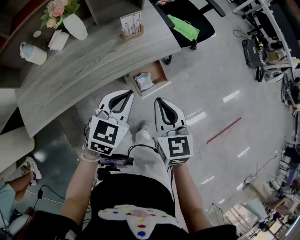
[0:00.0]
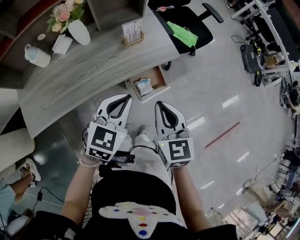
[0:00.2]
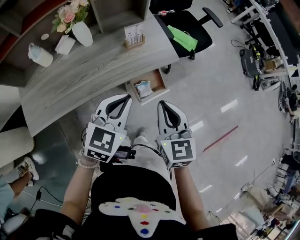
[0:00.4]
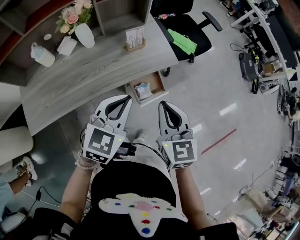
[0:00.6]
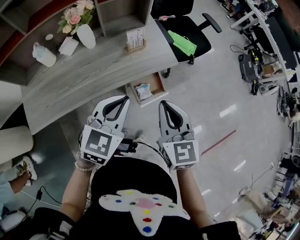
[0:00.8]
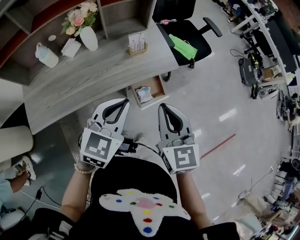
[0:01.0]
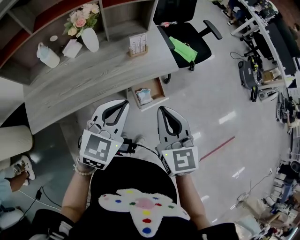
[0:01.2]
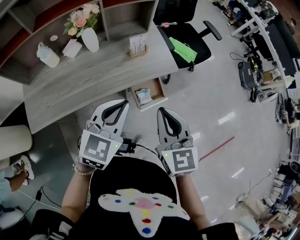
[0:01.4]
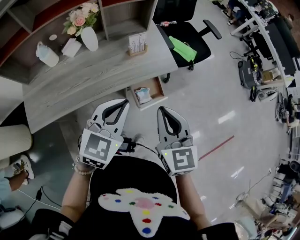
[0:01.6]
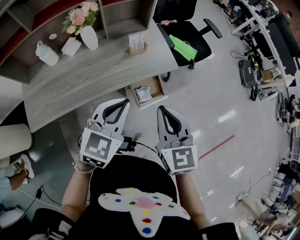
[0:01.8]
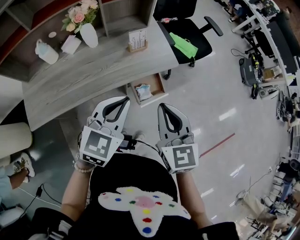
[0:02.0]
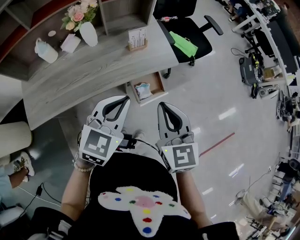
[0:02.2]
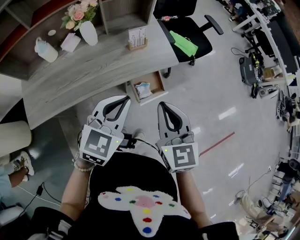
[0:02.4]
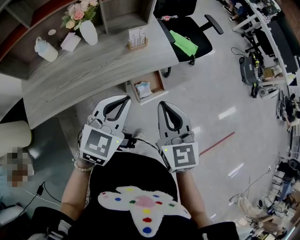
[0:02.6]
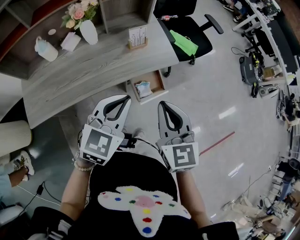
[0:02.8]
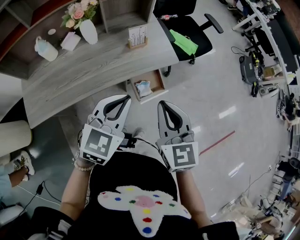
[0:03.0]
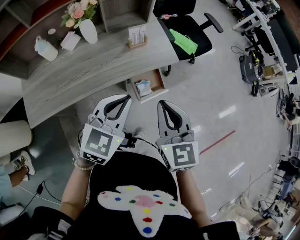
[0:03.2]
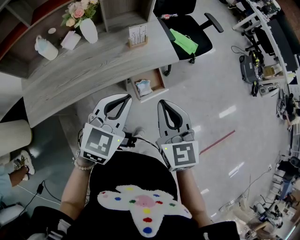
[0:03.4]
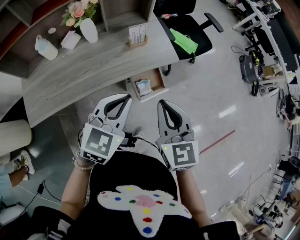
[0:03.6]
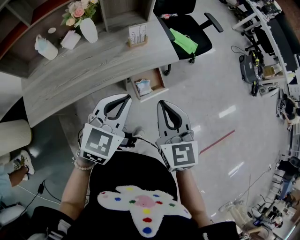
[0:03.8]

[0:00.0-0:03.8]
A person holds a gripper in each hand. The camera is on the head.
0:00.0 to 0:01.2: The two grippers go approximately 10 cm upward.
0:01.2 to 0:02.6: Both grippers stay about where they are.
0:02.6 to 0:03.8: Both grippers stay about where they are.

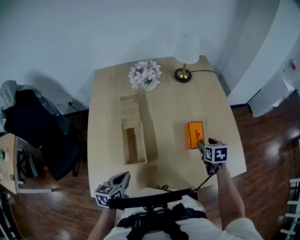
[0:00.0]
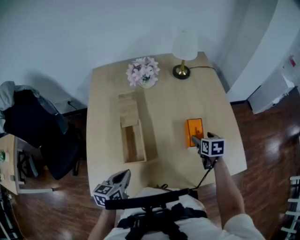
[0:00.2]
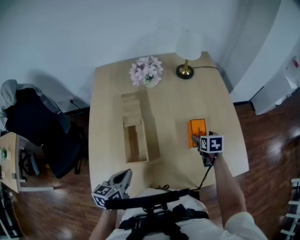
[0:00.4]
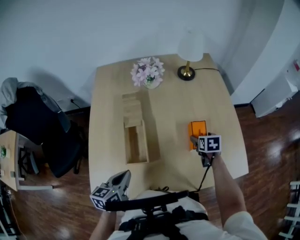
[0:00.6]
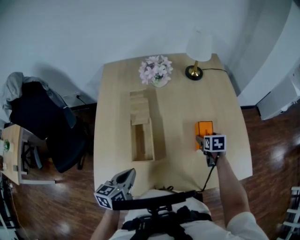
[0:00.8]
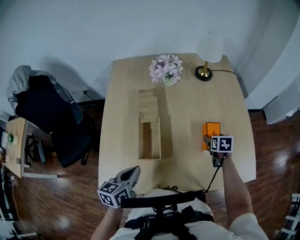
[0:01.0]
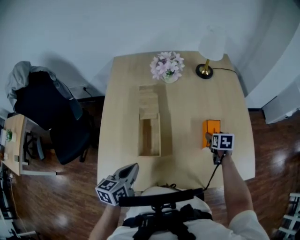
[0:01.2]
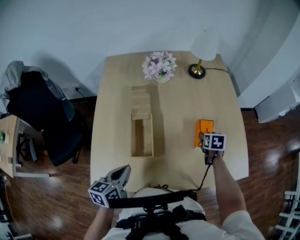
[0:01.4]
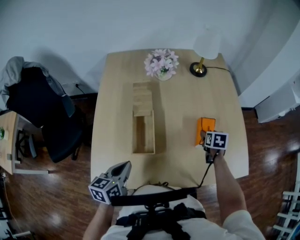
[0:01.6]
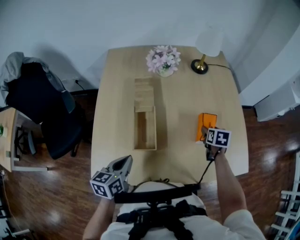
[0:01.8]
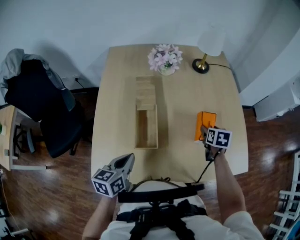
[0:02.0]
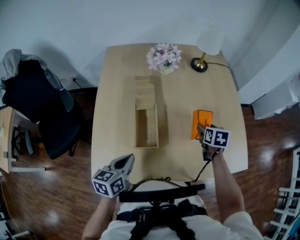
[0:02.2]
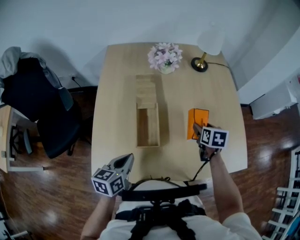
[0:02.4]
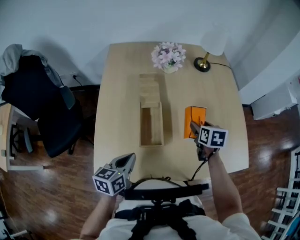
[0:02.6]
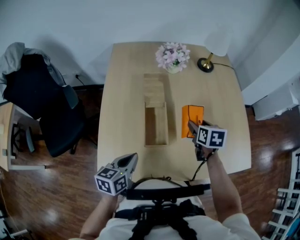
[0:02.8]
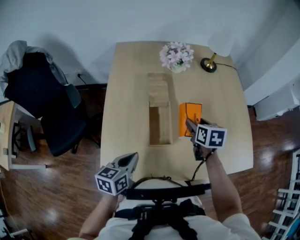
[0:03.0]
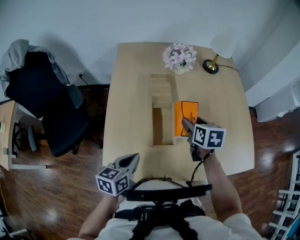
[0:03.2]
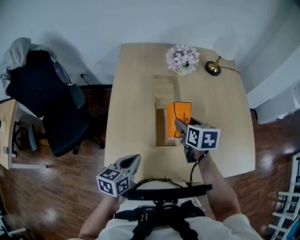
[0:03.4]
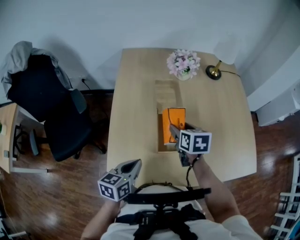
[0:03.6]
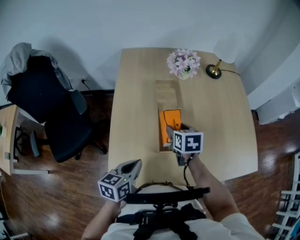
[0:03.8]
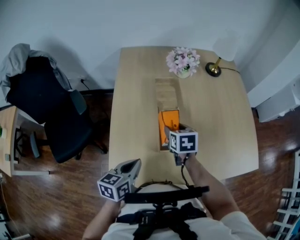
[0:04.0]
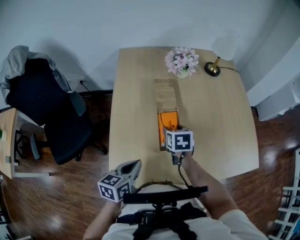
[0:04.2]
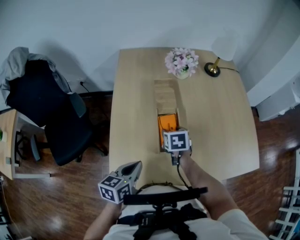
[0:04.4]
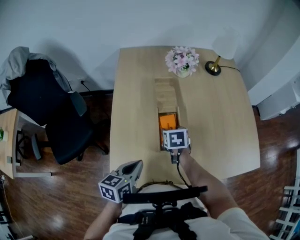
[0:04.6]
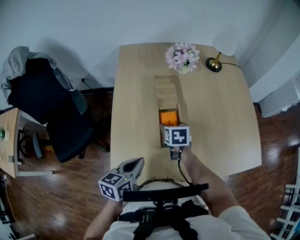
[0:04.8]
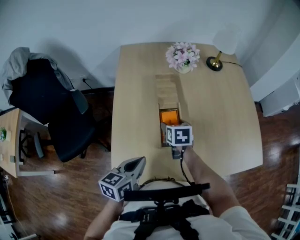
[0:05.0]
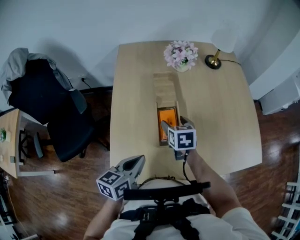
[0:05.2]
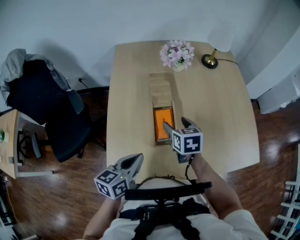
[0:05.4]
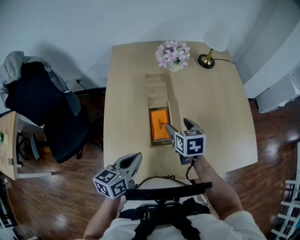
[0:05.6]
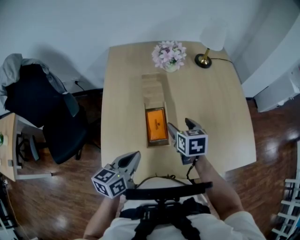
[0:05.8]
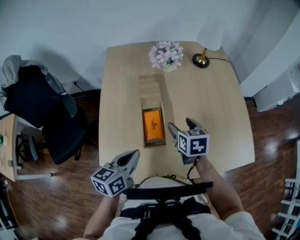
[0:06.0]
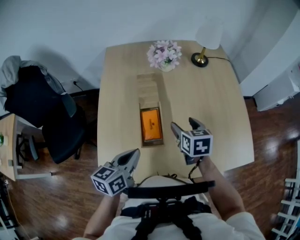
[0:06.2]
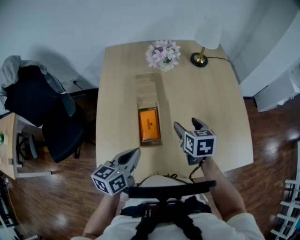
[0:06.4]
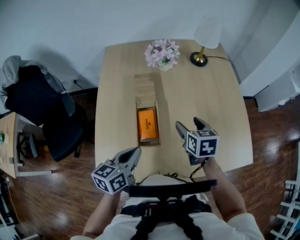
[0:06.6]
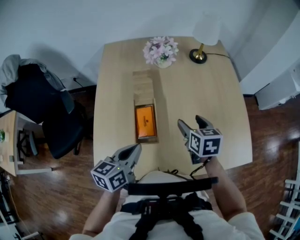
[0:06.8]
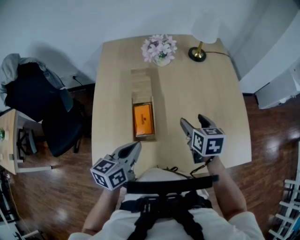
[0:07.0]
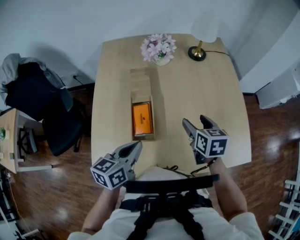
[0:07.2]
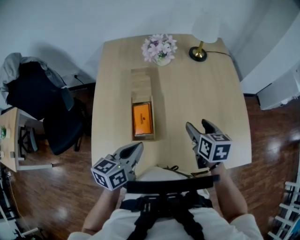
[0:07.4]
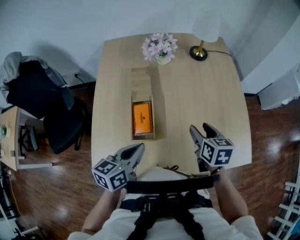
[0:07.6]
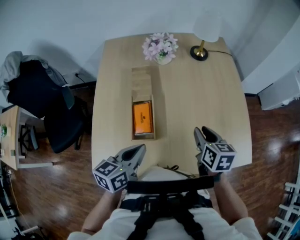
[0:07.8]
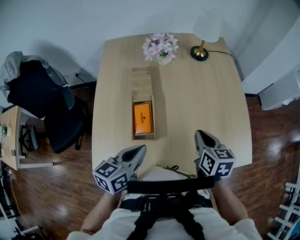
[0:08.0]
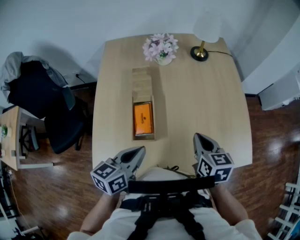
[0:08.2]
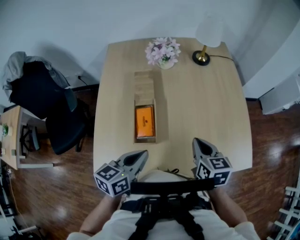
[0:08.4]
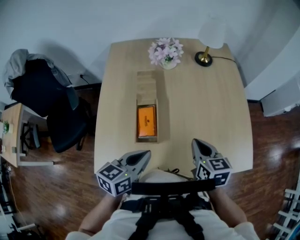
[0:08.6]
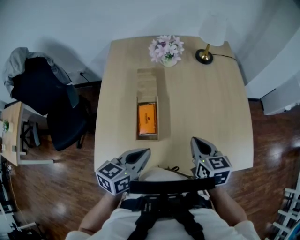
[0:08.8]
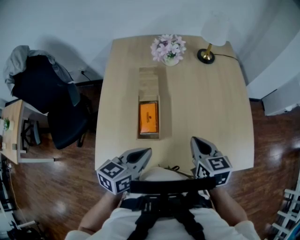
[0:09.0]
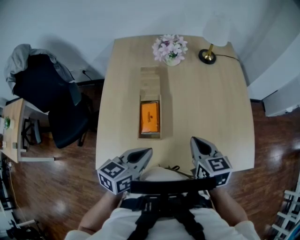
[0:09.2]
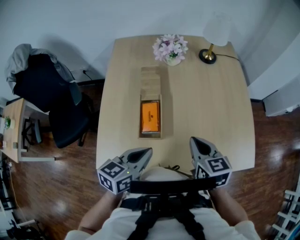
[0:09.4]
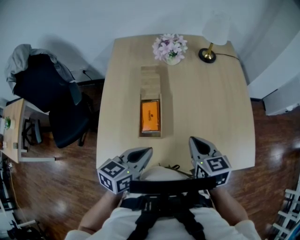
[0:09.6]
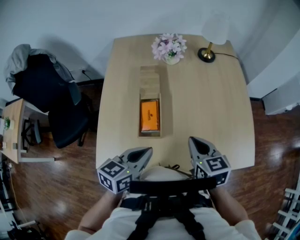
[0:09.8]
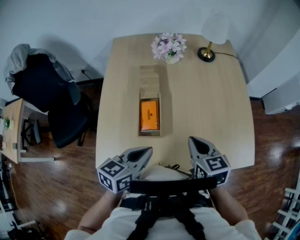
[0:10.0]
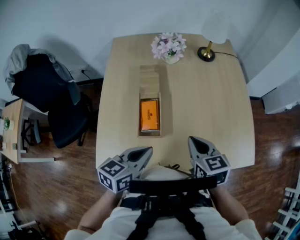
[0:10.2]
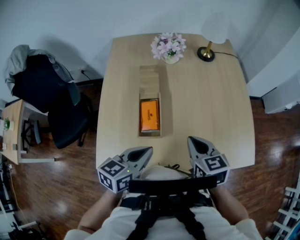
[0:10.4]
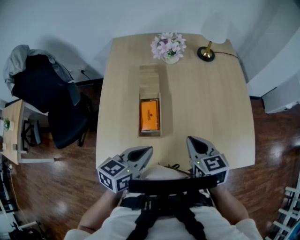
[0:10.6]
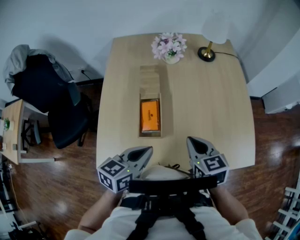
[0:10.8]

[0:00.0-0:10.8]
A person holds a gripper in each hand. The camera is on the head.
0:00.0 to 0:01.6: The right gripper goes roughly 5 cm forward.
0:01.6 to 0:03.0: The left gripper changes place by about 5 cm. The right gripper heads to the left and upward, covering about 20 cm.
0:03.0 to 0:04.6: The right gripper moves to the left and downward, about 15 cm.
0:04.6 to 0:06.2: The right gripper travels to the right and upward by some 15 cm. Meanwhile the left gripper moves to the right, roughly 5 cm.
0:06.2 to 0:07.8: The right gripper heads to the right, covering about 10 cm, and closes, while the left gripper is displaced to the right by some 10 cm.
0:07.8 to 0:09.2: The right gripper heads to the left, covering roughly 5 cm.
0:09.2 to 0:10.8: The grippers make only small movements.

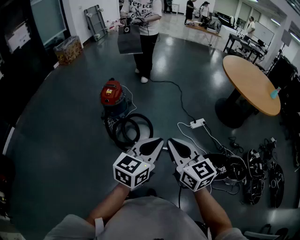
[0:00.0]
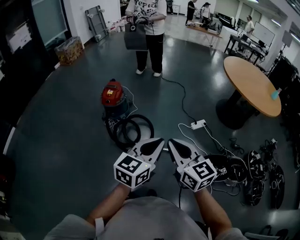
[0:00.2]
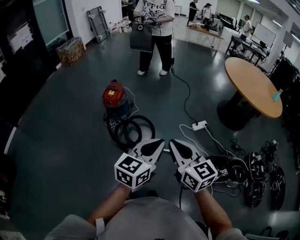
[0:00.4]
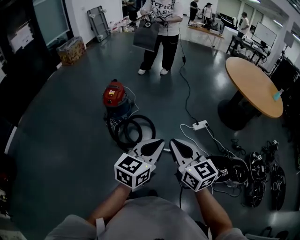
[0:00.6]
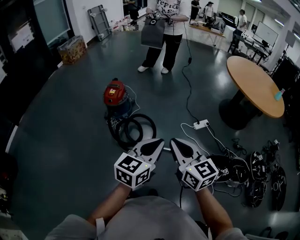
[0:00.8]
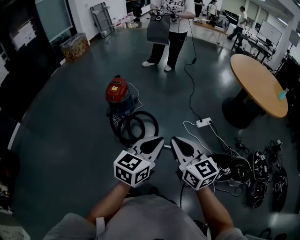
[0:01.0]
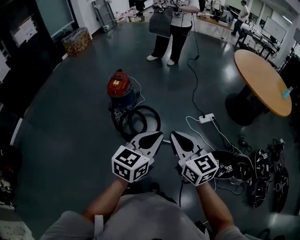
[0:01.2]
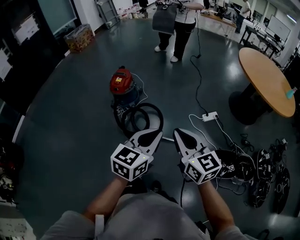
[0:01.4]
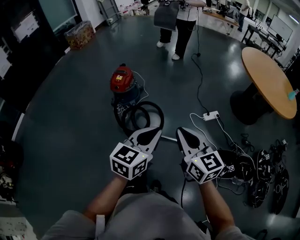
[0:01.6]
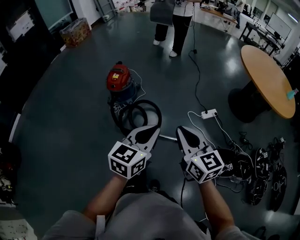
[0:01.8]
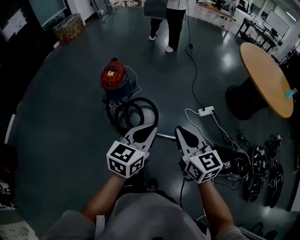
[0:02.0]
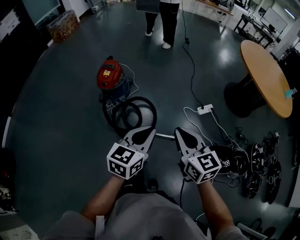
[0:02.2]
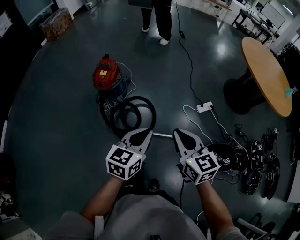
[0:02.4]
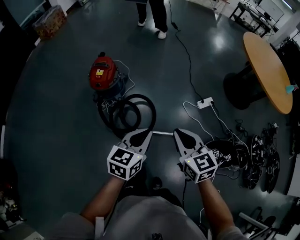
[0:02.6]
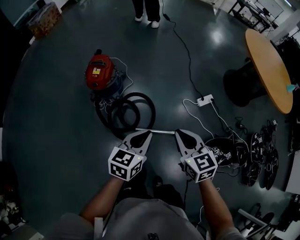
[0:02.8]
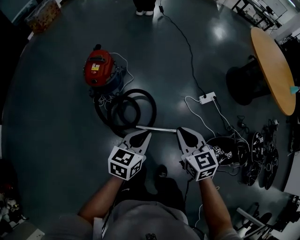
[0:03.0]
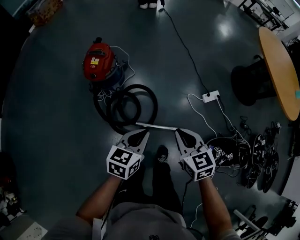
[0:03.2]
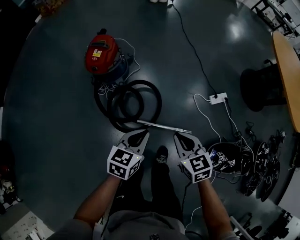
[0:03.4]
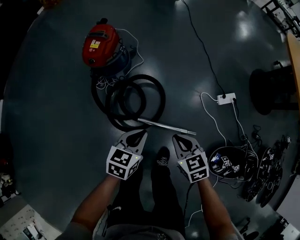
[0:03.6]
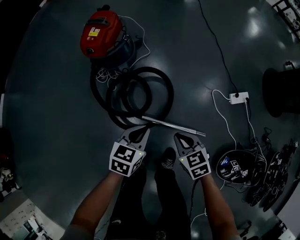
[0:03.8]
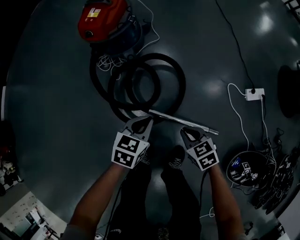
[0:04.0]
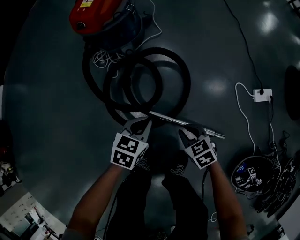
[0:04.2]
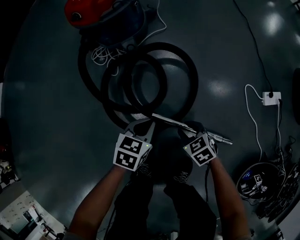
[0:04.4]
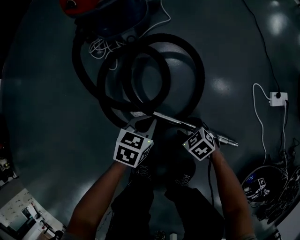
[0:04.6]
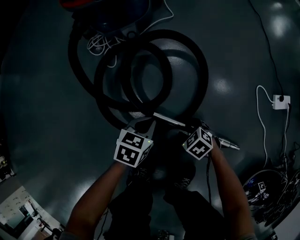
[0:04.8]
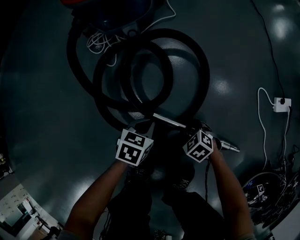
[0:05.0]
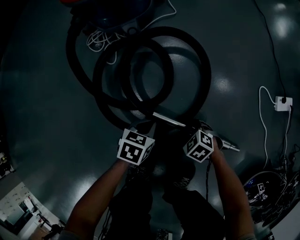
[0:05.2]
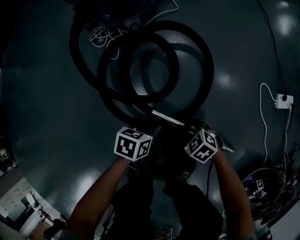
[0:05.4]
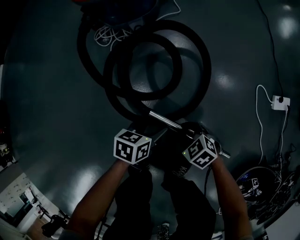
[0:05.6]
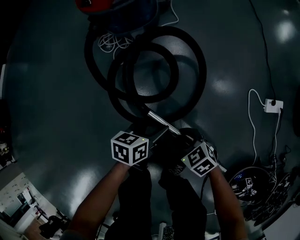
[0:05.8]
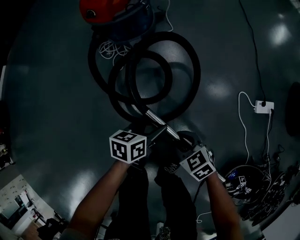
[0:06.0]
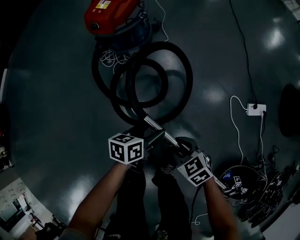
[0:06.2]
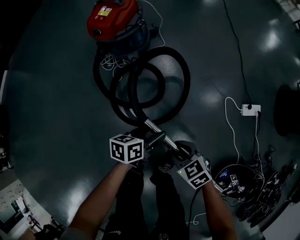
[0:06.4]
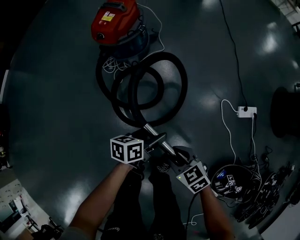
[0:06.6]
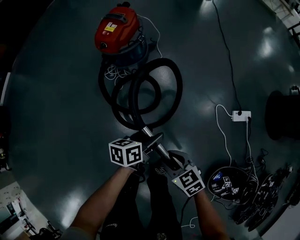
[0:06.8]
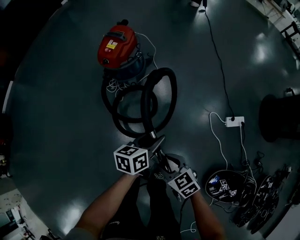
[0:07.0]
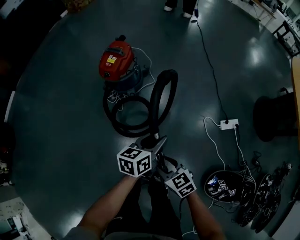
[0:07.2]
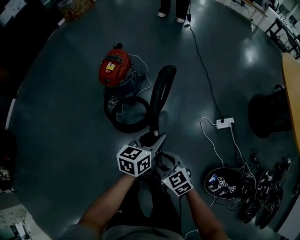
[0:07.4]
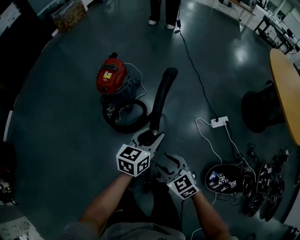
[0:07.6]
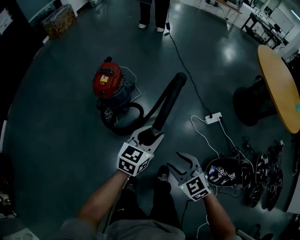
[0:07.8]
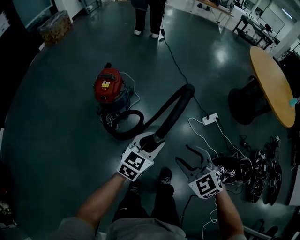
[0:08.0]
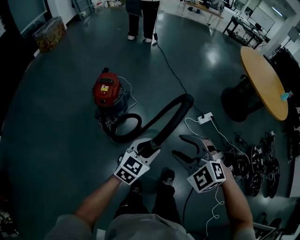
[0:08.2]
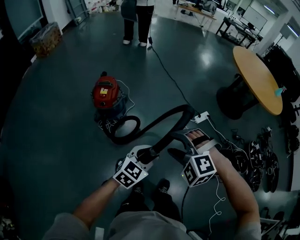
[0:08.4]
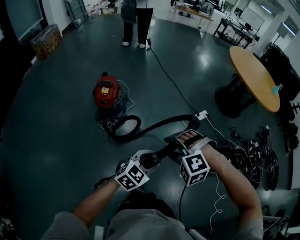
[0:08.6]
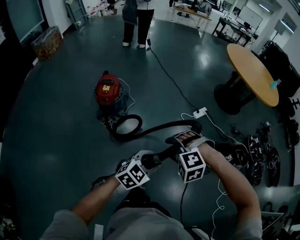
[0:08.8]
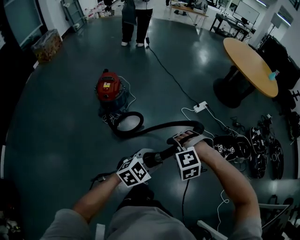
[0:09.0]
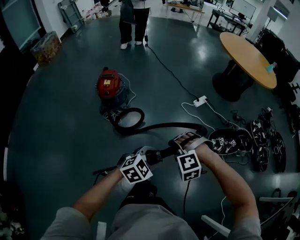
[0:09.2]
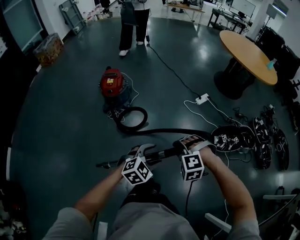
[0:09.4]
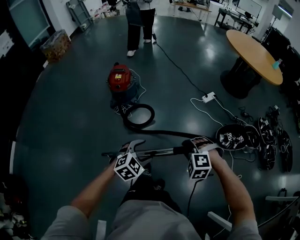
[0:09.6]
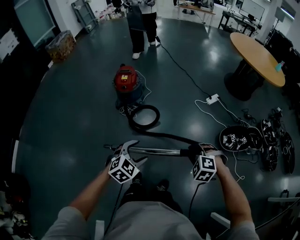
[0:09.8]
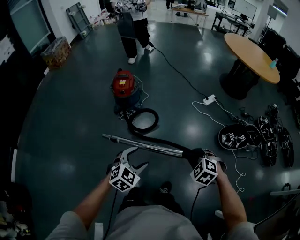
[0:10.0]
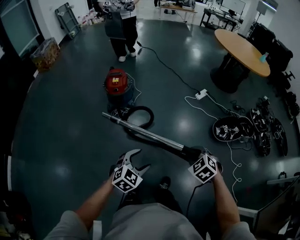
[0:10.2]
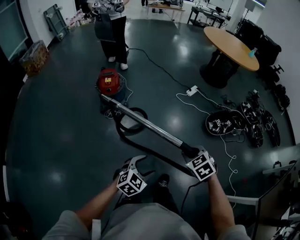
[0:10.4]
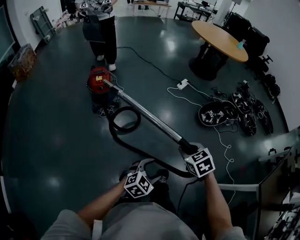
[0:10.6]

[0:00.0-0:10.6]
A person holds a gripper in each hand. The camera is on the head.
0:00.0 to 0:01.6: Both grippers travel together forward, approximately 5 cm.
0:01.6 to 0:03.0: The right gripper heads forward and downward, covering some 30 cm, and changes its angle by approximately 30 degrees. Meanwhile the left gripper moves forward, downward and to the left, about 35 cm.
0:03.0 to 0:04.6: Both grippers travel together downward, about 70 cm. The left gripper rotates approximately 30 degrees, while the right gripper tilts its fingers some 30 degrees downward, and opens its fingers.
0:04.6 to 0:06.0: The right gripper travels upward by about 20 cm. The left gripper shifts approximately 10 cm upward, swivels about 30 degrees, and opens up.
0:06.0 to 0:07.6: Both grippers travel together upward, approximately 50 cm. The right gripper swivels about 30 degrees, while the left gripper changes its angle by approximately 40 degrees, and closes.
0:07.6 to 0:09.0: The right gripper ends up approximately 25 cm from where it was, and rotates around the line of its fingers by about 60 degrees, counterclockwise from behind. Meanwhile the left gripper changes place by roughly 40 cm, and rotates roughly 60 degrees.
0:09.0 to 0:10.6: Both grippers move backward, roughly 25 cm. The left gripper opens. The right gripper twists approximately 90 degrees clockwise, seen from behind.
